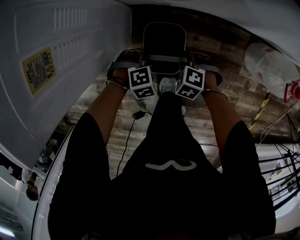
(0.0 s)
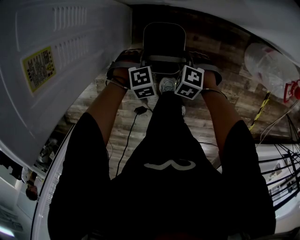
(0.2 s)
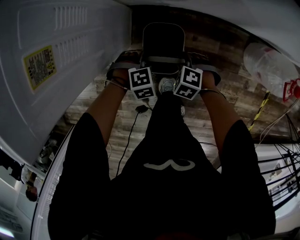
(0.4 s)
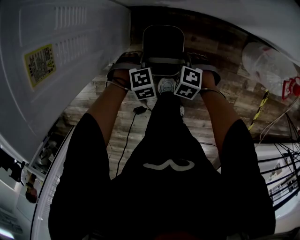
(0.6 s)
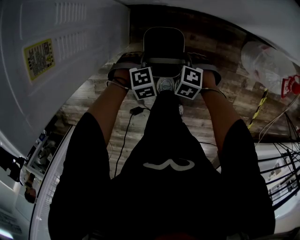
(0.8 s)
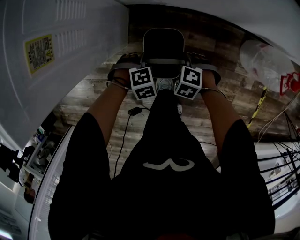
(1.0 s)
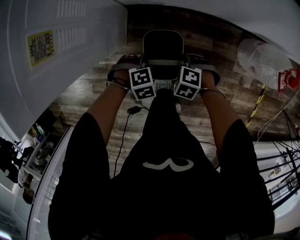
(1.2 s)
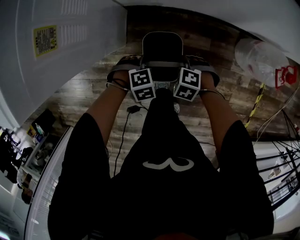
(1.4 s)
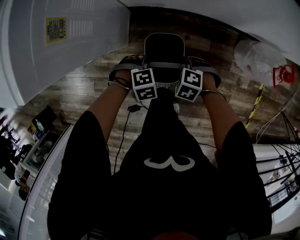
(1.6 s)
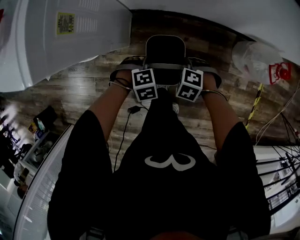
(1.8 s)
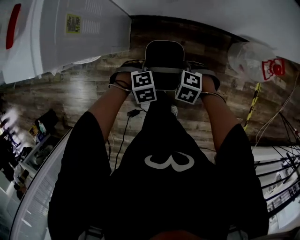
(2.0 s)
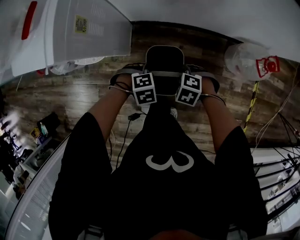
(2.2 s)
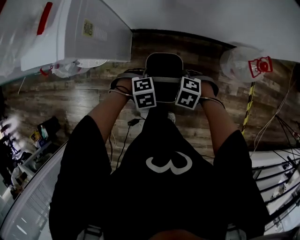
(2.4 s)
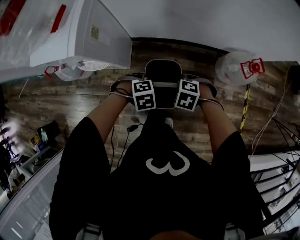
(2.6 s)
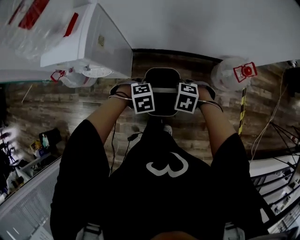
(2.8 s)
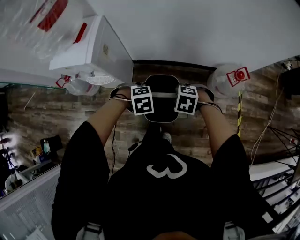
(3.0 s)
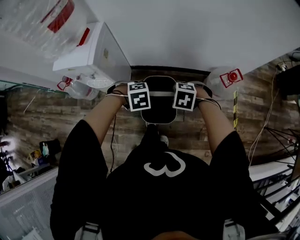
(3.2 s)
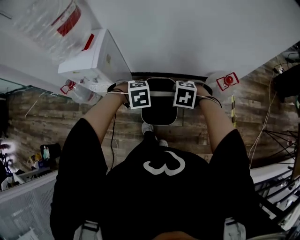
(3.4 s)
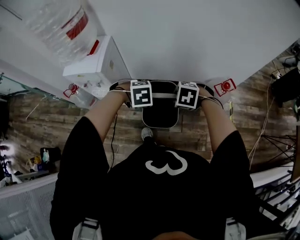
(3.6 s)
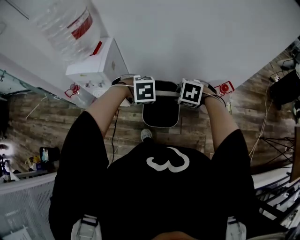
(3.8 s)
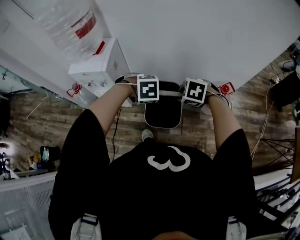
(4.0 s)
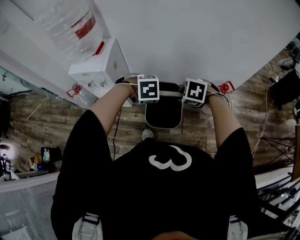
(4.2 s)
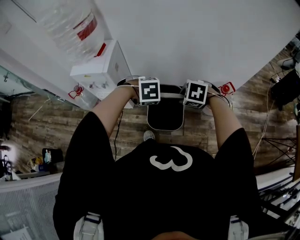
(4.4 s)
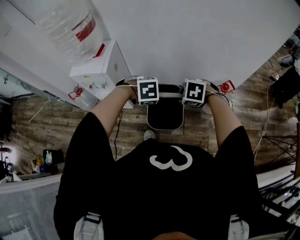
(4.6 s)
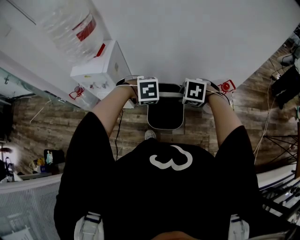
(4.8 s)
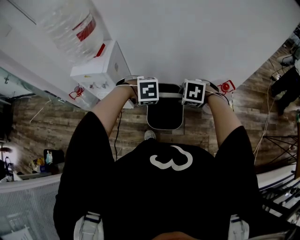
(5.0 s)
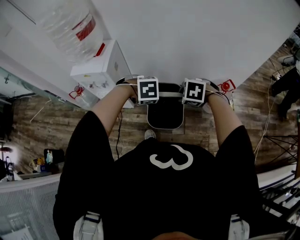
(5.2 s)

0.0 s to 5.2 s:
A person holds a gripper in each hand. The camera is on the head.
0.0 to 1.8 s: The left gripper shifts by about 15 cm. Meanwhile the right gripper moves upward, about 10 cm.
1.8 to 3.4 s: The two grippers go about 35 cm upward.
3.4 to 5.2 s: The two grippers go about 10 cm upward.

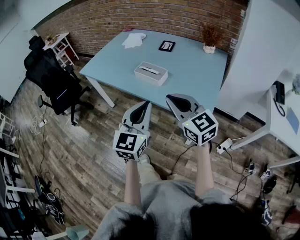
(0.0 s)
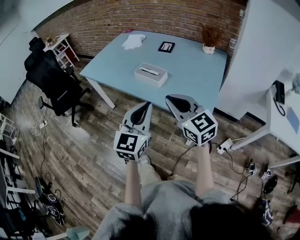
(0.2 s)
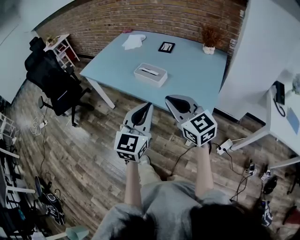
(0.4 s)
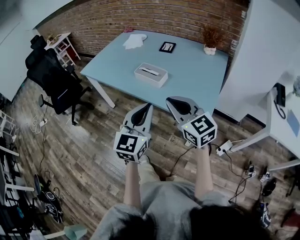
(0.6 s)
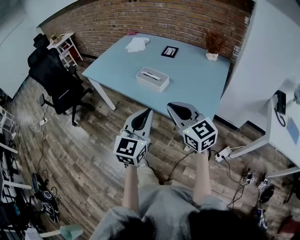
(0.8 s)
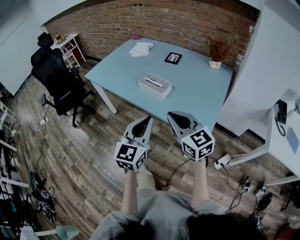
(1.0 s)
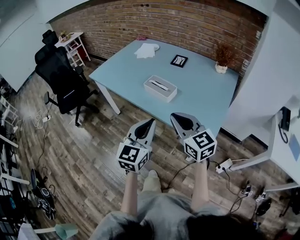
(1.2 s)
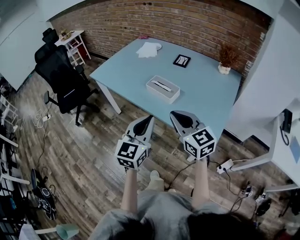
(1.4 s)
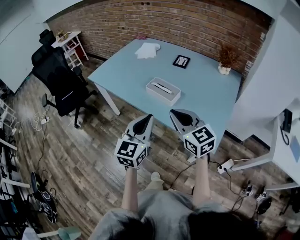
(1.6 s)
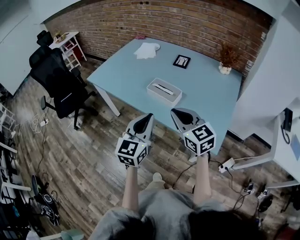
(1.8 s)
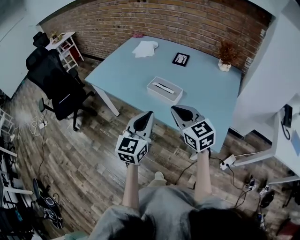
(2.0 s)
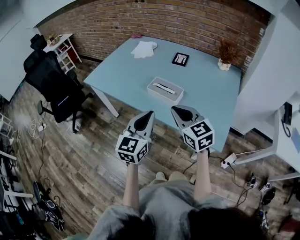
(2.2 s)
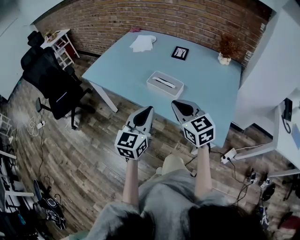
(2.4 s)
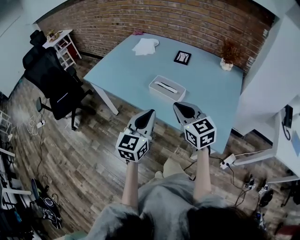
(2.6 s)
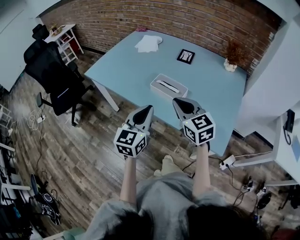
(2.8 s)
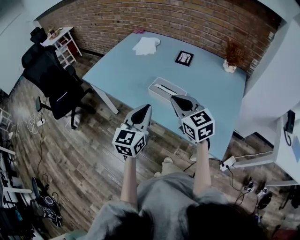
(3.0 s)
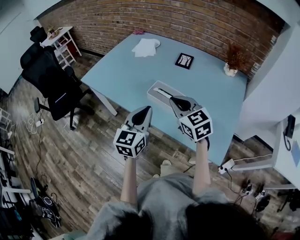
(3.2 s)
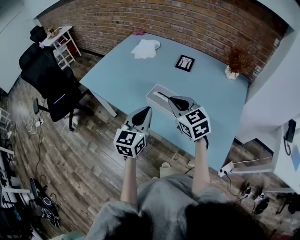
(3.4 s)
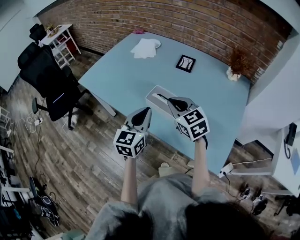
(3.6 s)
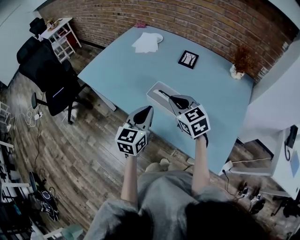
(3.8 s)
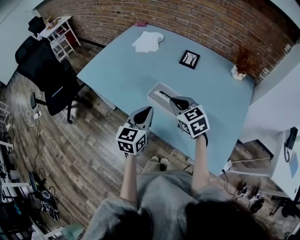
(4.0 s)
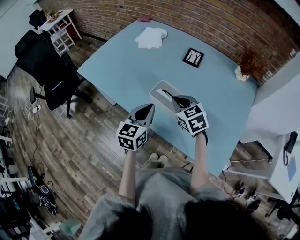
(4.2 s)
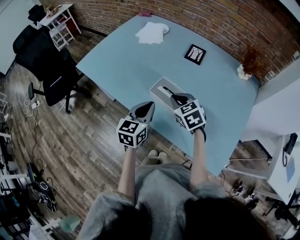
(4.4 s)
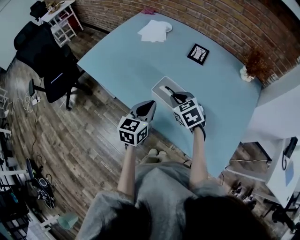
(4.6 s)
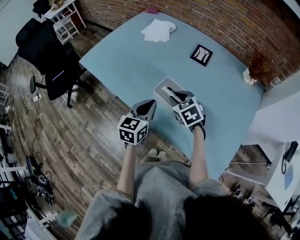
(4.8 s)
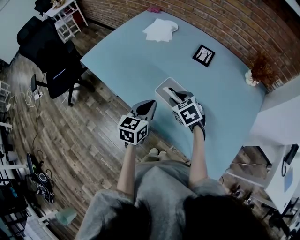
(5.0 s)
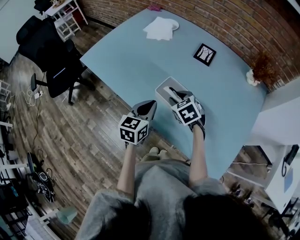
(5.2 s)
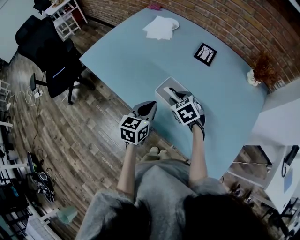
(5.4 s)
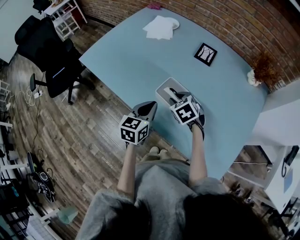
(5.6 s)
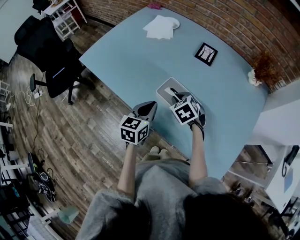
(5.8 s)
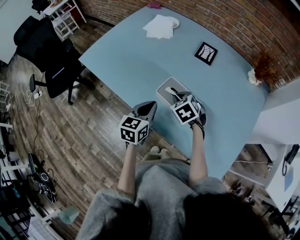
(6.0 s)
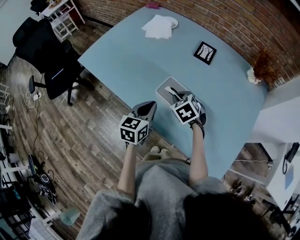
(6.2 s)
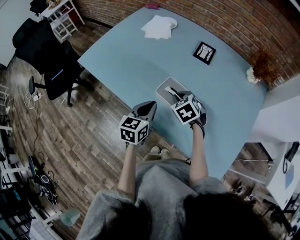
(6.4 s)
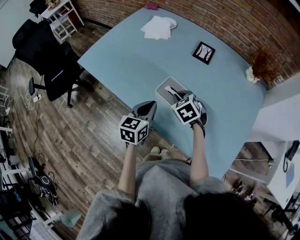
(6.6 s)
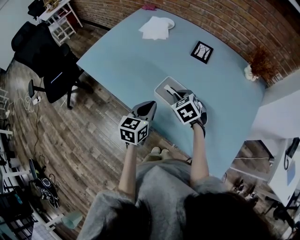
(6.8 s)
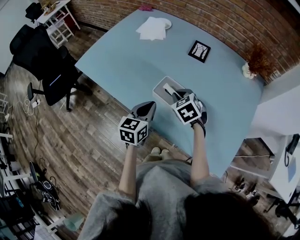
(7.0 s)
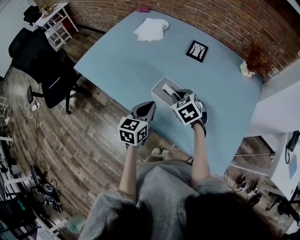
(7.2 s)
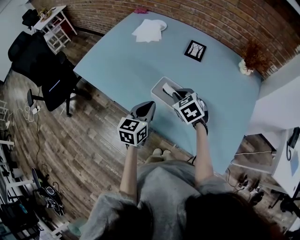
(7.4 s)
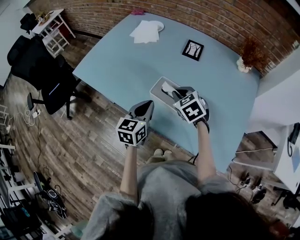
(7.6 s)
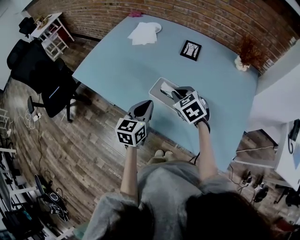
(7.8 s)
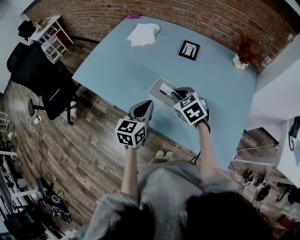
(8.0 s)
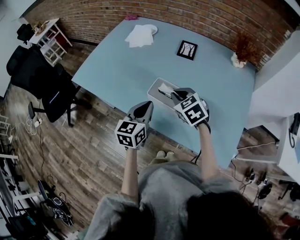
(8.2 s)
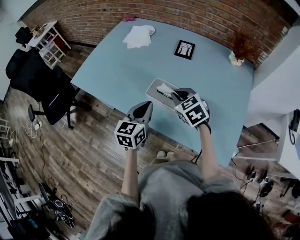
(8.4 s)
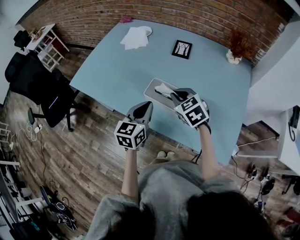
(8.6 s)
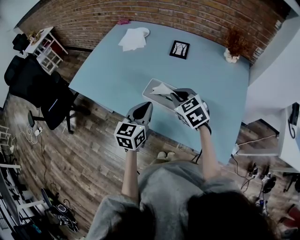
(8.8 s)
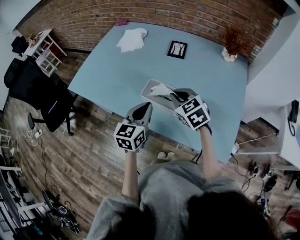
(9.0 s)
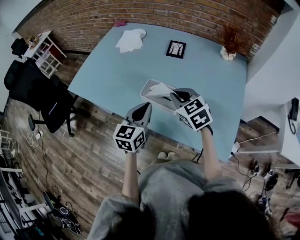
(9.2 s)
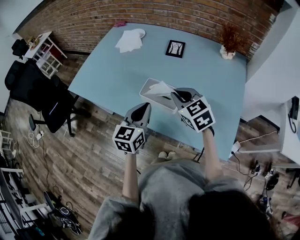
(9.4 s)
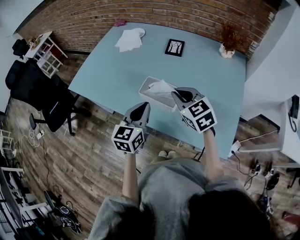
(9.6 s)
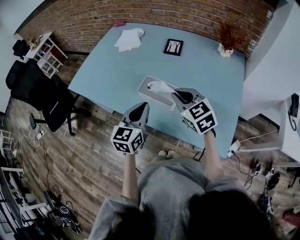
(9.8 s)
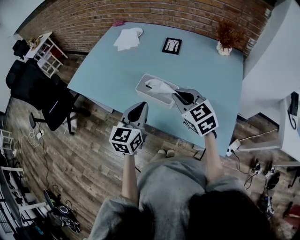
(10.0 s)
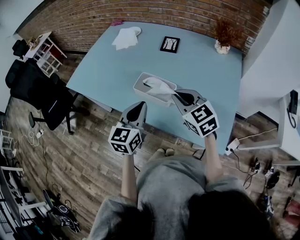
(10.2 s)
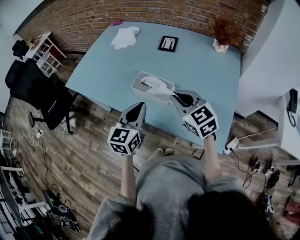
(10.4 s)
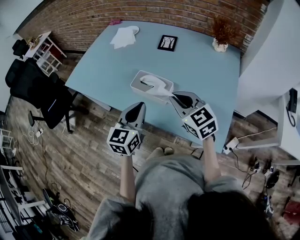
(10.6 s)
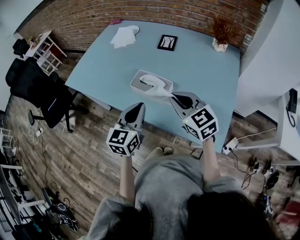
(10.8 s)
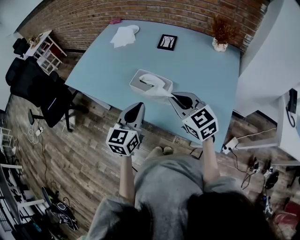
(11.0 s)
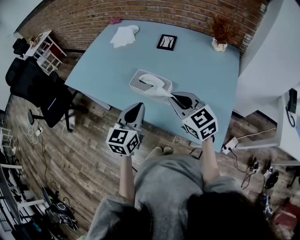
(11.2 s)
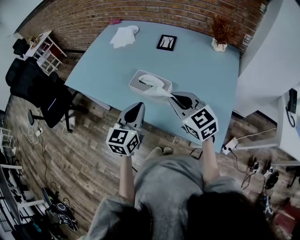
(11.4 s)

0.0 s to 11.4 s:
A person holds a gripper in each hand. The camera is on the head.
0.0 to 1.4 s: The grippers both shift forward by approximately 5 cm.
1.4 to 2.8 s: The right gripper heads forward, covering some 15 cm, while the left gripper moves forward and to the left, about 15 cm.
2.8 to 4.2 s: Both grippers travel together forward and downward, some 20 cm. The right gripper turns by approximately 20 degrees.
4.2 to 5.6 s: The left gripper travels downward by about 5 cm, while the right gripper goes some 10 cm downward and forward, and opens its fingers.
5.6 to 7.2 s: The right gripper closes its fingers.
7.2 to 8.6 s: The right gripper goes about 5 cm upward; the left gripper ends up approximately 5 cm from where it was.
8.6 to 10.0 s: The right gripper travels backward and upward by about 10 cm. The left gripper is displaced backward by about 5 cm.
10.0 to 11.4 s: The right gripper moves roughly 5 cm.

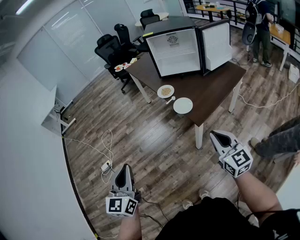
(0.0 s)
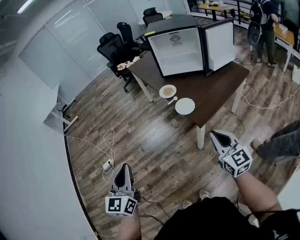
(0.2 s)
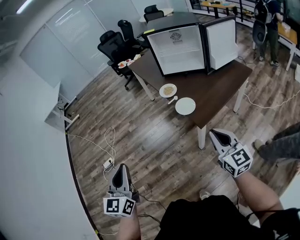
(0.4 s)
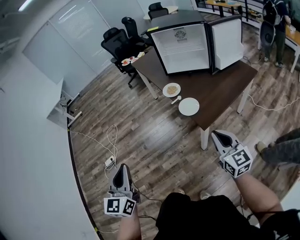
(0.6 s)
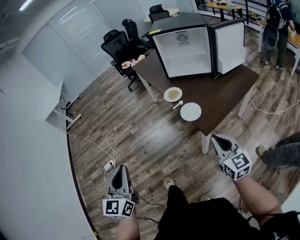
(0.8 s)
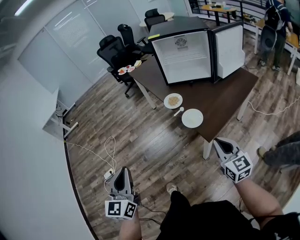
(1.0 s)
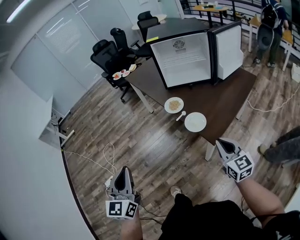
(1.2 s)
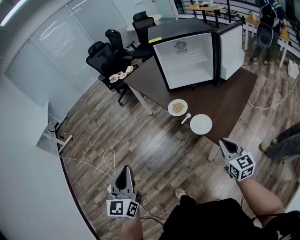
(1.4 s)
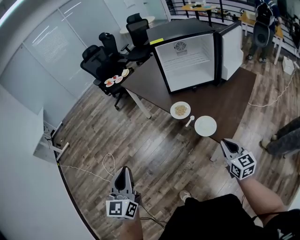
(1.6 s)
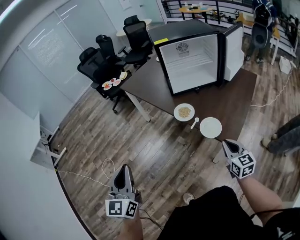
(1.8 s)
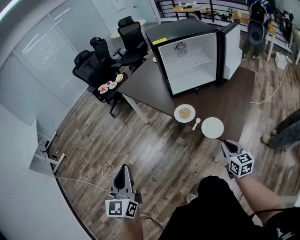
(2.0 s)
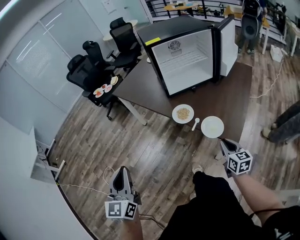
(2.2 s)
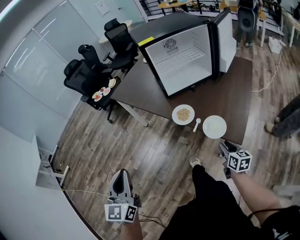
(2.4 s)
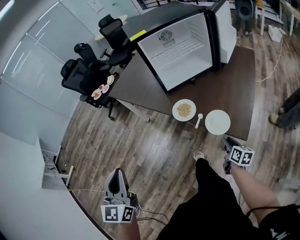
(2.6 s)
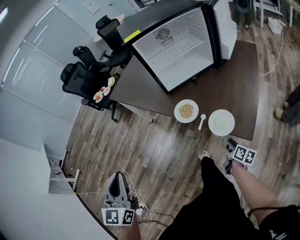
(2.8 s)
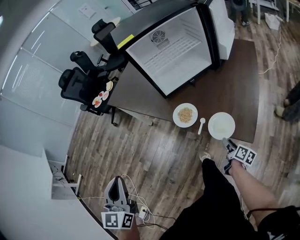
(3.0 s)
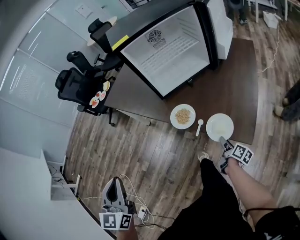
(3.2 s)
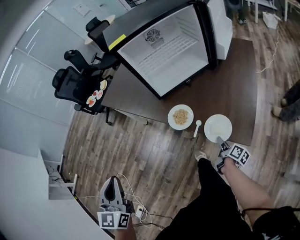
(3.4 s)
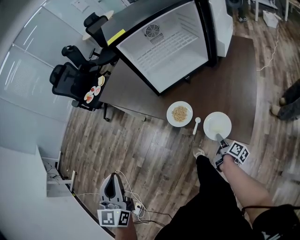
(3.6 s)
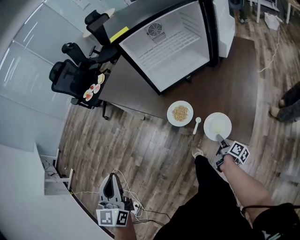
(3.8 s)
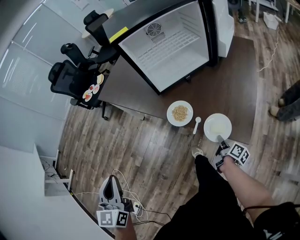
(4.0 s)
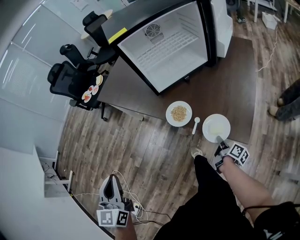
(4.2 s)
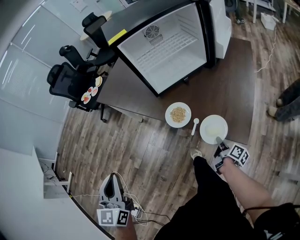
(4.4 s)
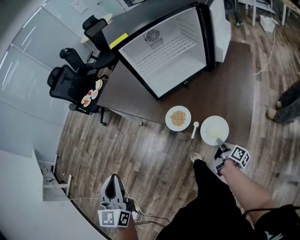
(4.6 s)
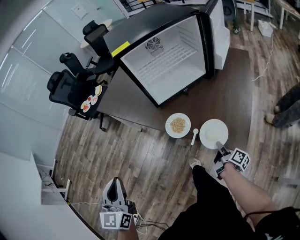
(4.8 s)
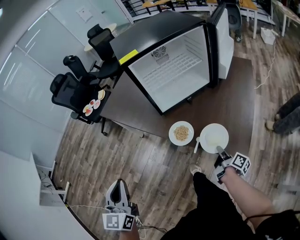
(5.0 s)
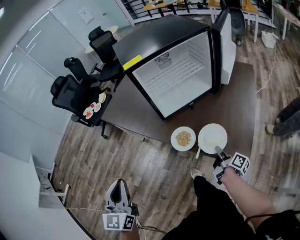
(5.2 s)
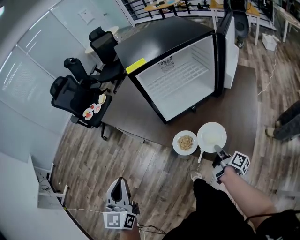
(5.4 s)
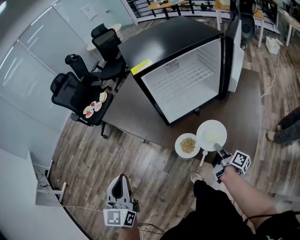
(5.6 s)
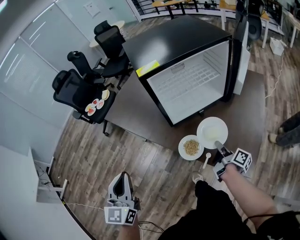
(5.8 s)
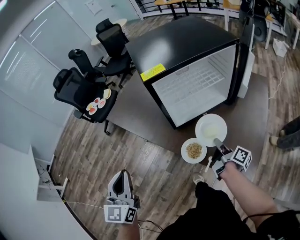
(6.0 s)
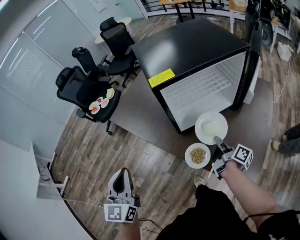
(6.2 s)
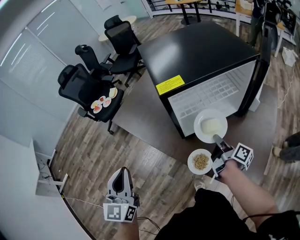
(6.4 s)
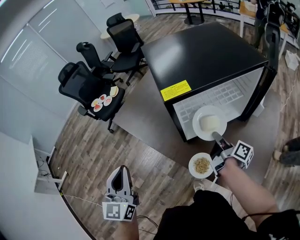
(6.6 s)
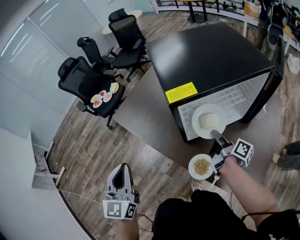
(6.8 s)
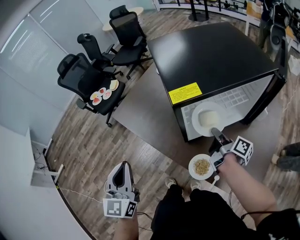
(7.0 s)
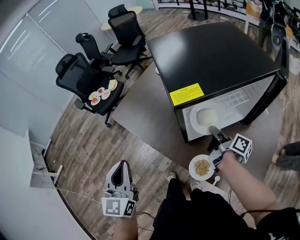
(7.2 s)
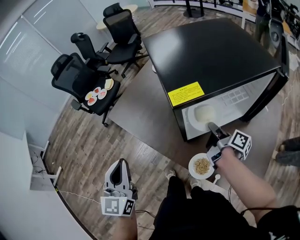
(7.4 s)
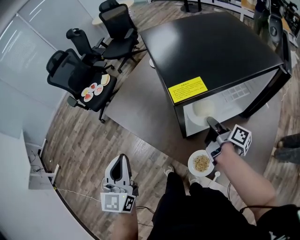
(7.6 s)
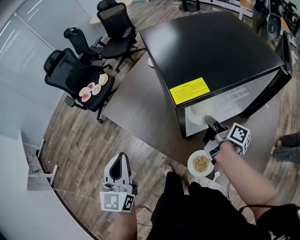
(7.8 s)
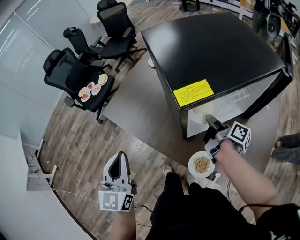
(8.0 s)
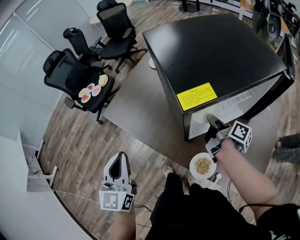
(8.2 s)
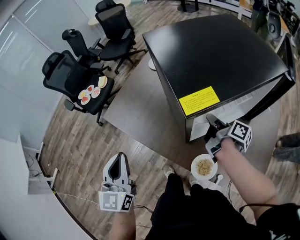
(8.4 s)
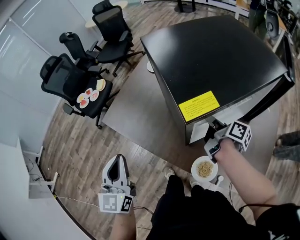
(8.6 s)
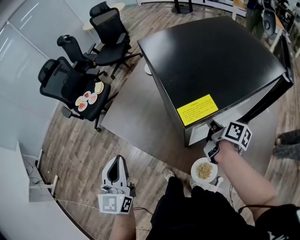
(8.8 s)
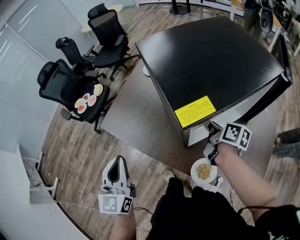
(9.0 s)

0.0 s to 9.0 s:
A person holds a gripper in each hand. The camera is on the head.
0.0 to 1.6 s: The left gripper goes about 30 cm forward, while the right gripper moves forward and downward, approximately 25 cm, and changes its angle by approximately 20 degrees.
1.6 to 3.0 s: The right gripper goes about 30 cm downward and forward, rotates around the line of its fingers by roughly 70 degrees, clockwise from behind, and opens. Meanwhile the left gripper is displaced forward by approximately 20 cm.
3.0 to 4.4 s: The right gripper closes its fingers.
4.4 to 6.0 s: The right gripper goes some 25 cm forward and upward, while the left gripper moves forward, roughly 15 cm.
6.0 to 7.6 s: Both grippers move forward, approximately 20 cm.
7.6 to 9.0 s: The right gripper moves some 5 cm, rotates some 20 degrees, and opens its fingers; the left gripper is displaced forward by about 5 cm.
